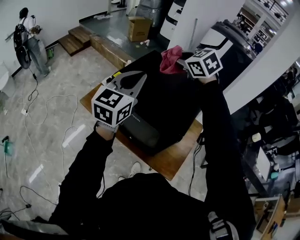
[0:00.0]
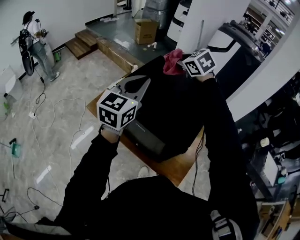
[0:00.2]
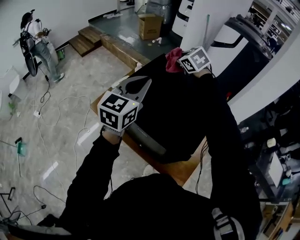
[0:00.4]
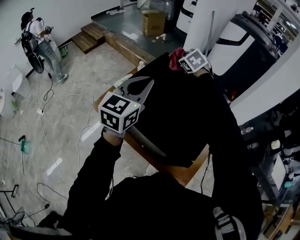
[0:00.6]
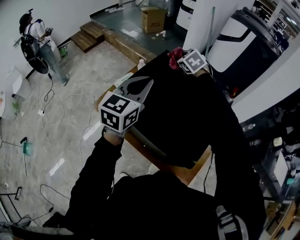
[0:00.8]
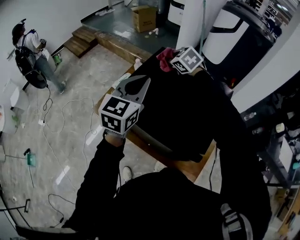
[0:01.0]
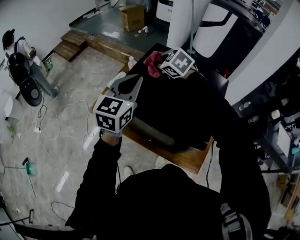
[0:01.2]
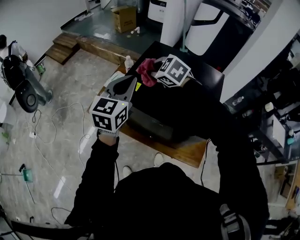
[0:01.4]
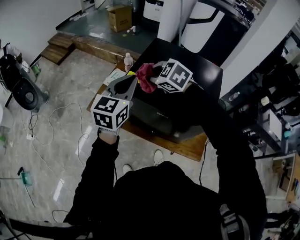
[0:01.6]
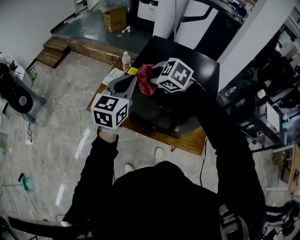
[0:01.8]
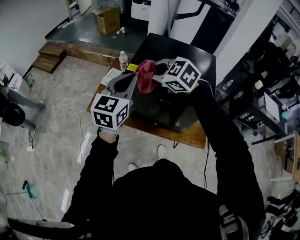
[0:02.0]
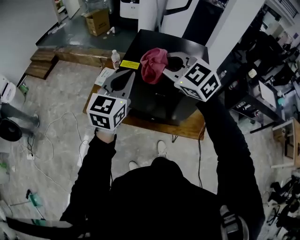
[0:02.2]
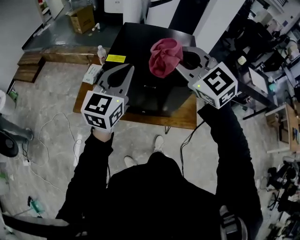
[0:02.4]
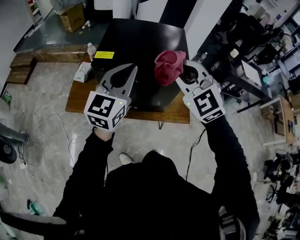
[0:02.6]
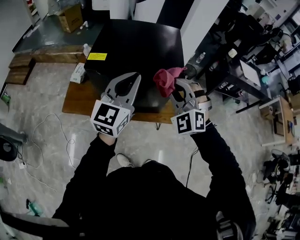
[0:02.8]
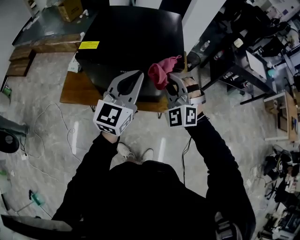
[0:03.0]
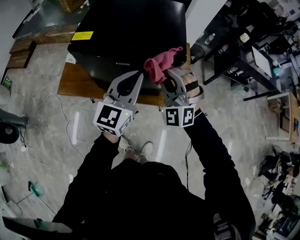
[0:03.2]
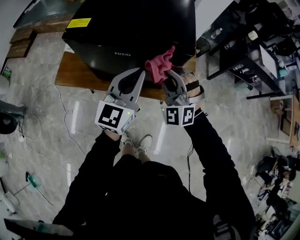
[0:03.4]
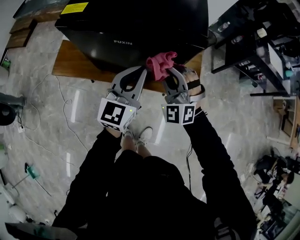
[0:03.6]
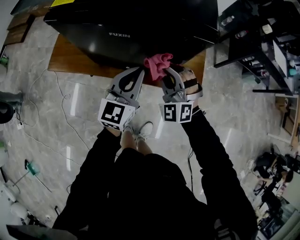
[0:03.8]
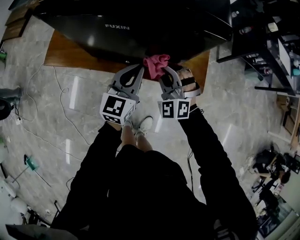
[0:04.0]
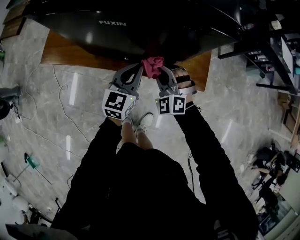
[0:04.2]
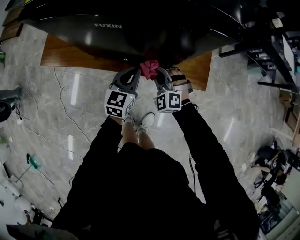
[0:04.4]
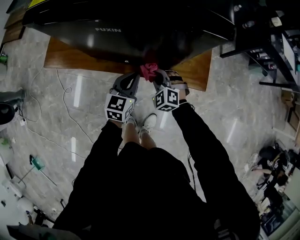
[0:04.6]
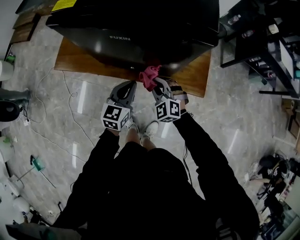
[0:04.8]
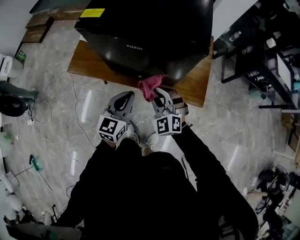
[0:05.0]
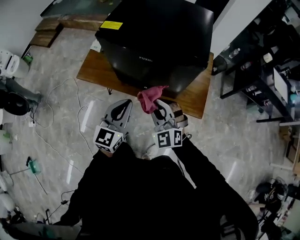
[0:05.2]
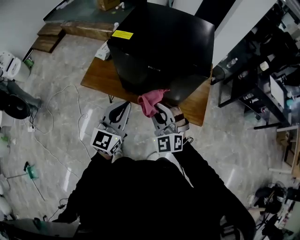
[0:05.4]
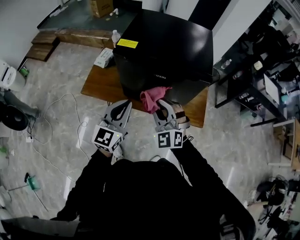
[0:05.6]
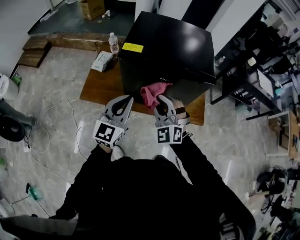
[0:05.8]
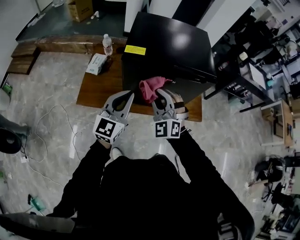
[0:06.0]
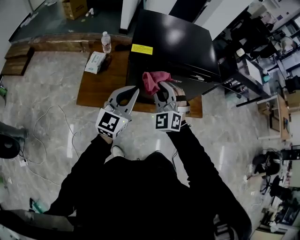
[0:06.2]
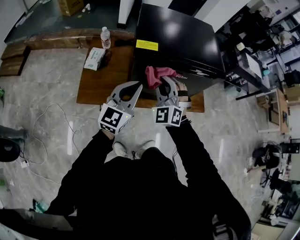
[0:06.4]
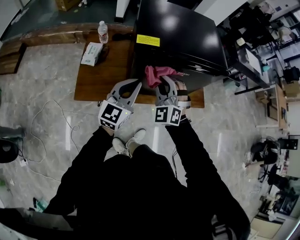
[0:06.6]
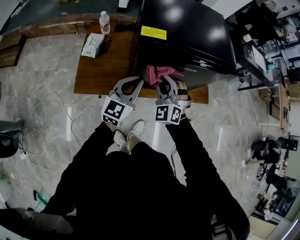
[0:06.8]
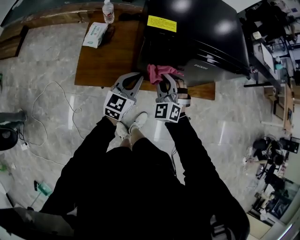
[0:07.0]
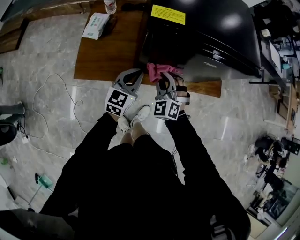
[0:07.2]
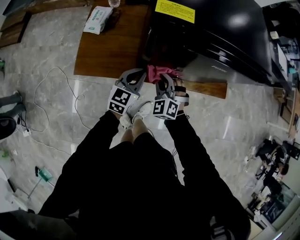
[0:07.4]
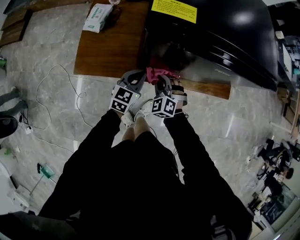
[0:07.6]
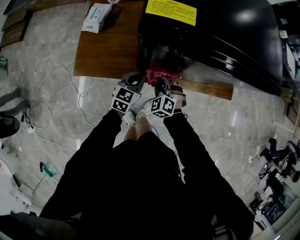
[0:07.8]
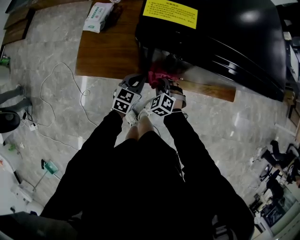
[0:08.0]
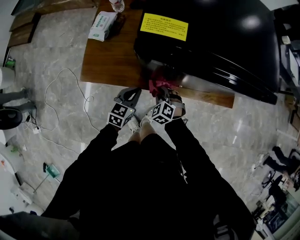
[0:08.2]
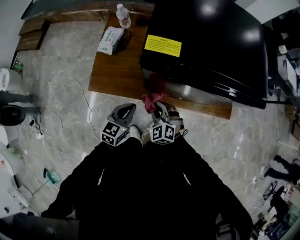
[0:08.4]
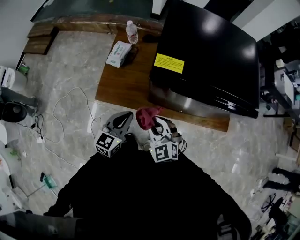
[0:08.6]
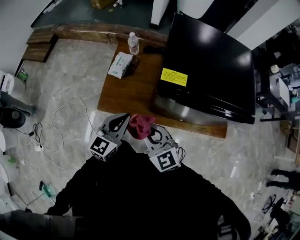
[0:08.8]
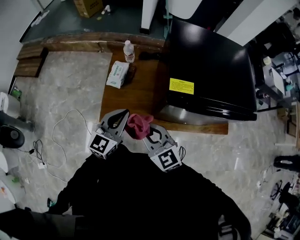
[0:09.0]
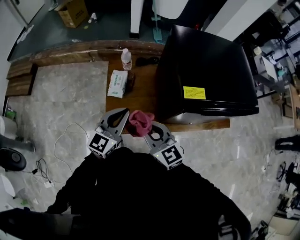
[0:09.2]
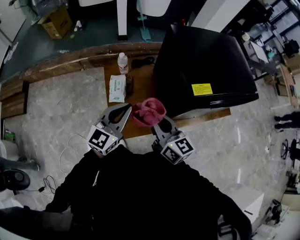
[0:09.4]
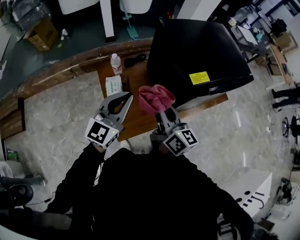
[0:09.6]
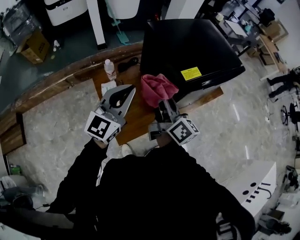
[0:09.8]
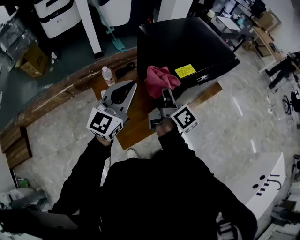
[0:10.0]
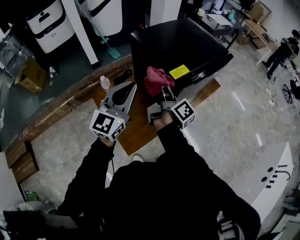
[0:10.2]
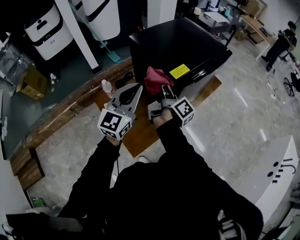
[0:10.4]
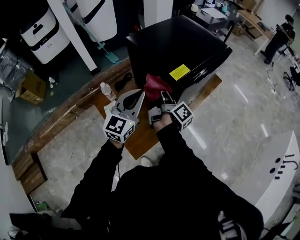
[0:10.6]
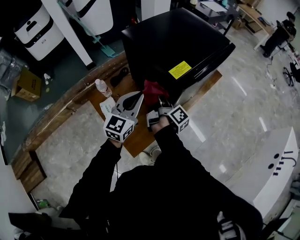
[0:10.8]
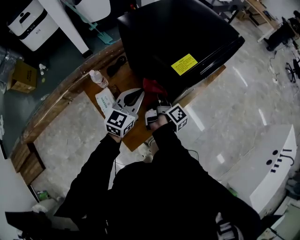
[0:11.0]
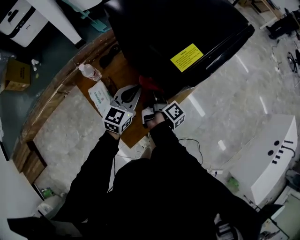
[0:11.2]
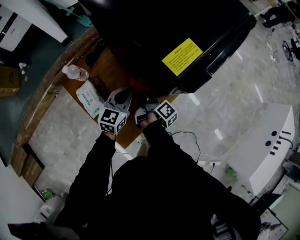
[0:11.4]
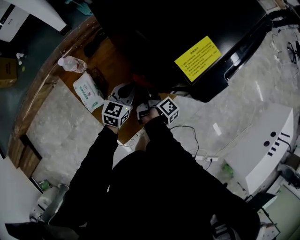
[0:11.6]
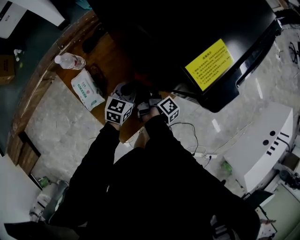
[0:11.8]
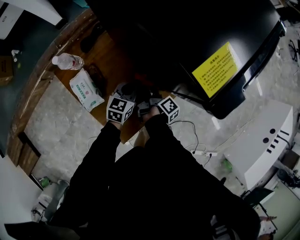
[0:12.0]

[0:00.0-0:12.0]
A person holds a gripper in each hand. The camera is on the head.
0:00.0 to 0:01.6: The right gripper moves to the left and downward, roughly 25 cm, and goes forward and returns, some 20 cm each way. The left gripper goes some 15 cm to the left, downward and forward.
0:01.6 to 0:03.0: The right gripper reaches approximately 15 cm upward, then returns, and angles its fingers upward, by roughly 30 degrees, while the left gripper shifts by roughly 25 cm, and changes its angle by approximately 30 degrees.
0:03.0 to 0:04.4: Both grippers move downward, some 40 cm. The right gripper turns by approximately 30 degrees. The left gripper turns by some 30 degrees.
0:04.4 to 0:06.0: The two grippers go about 40 cm upward and to the left. The left gripper turns by roughly 30 degrees. The right gripper rotates roughly 30 degrees.
0:06.0 to 0:07.6: The grippers both shift downward by roughly 35 cm. The left gripper swivels roughly 30 degrees; the right gripper turns by about 30 degrees.
0:07.6 to 0:09.0: The two grippers go about 30 cm upward and to the left. The right gripper swivels approximately 50 degrees.
0:09.0 to 0:10.4: The left gripper is displaced upward by some 15 cm, and turns by approximately 40 degrees; the right gripper changes place by about 15 cm, and swivels roughly 120 degrees.
0:10.4 to 0:12.0: Both grippers move downward, some 40 cm. The right gripper tilts its fingers some 30 degrees downward. The left gripper angles its fingers downward, by some 30 degrees.

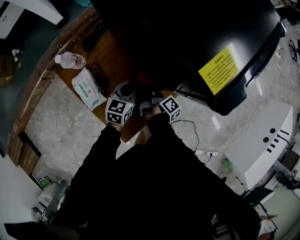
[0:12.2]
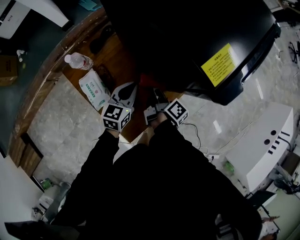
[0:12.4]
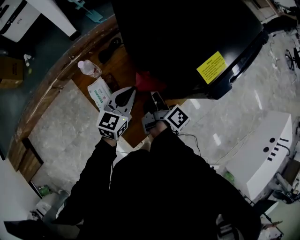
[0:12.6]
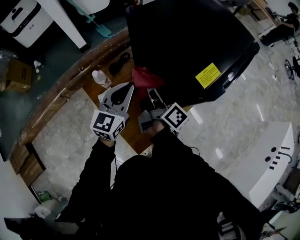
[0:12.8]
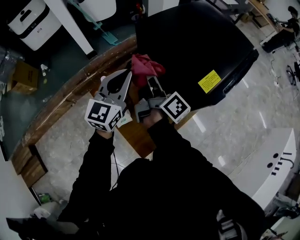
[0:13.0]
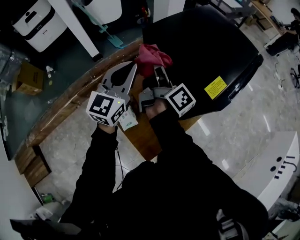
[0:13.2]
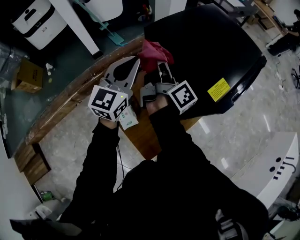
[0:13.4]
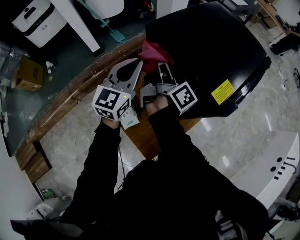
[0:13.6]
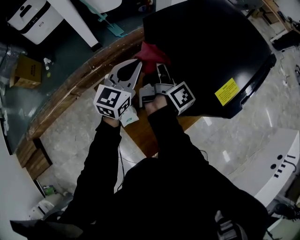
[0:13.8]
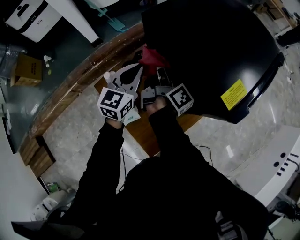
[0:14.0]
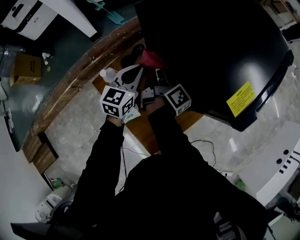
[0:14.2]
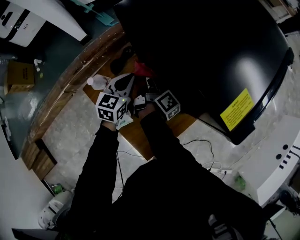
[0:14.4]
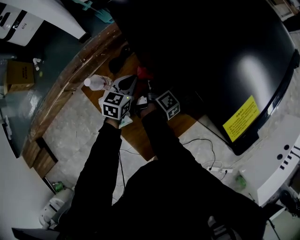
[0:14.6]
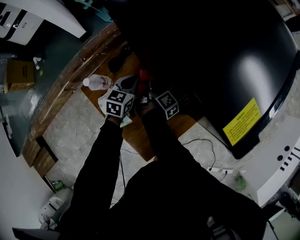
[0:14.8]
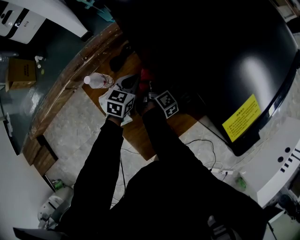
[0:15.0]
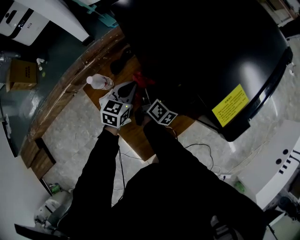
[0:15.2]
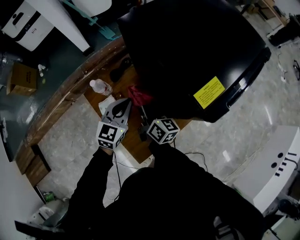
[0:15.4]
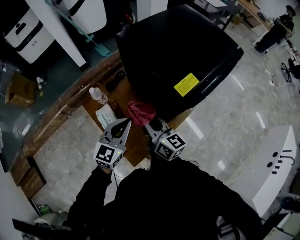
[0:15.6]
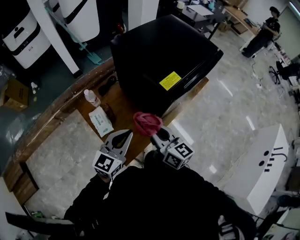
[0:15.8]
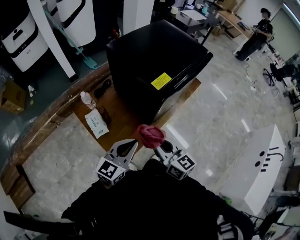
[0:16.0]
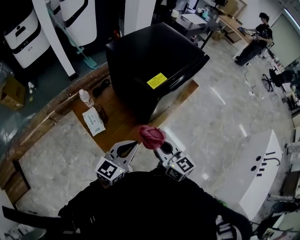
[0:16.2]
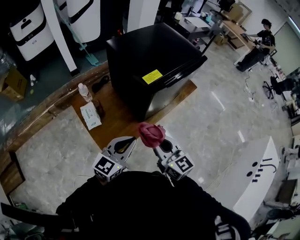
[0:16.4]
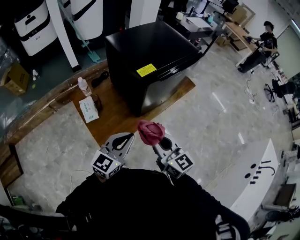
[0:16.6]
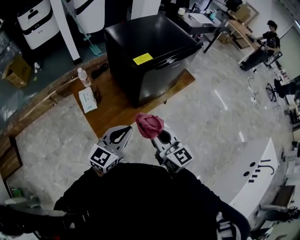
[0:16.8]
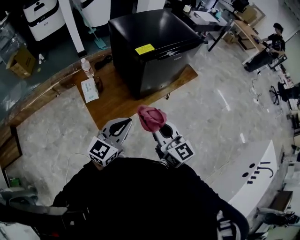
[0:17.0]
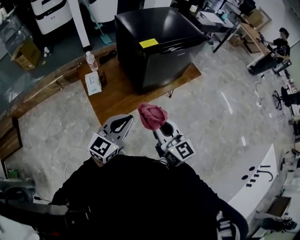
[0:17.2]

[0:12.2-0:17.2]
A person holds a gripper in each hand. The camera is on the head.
0:12.2 to 0:13.8: The grippers both shift upward and to the left by some 40 cm. The right gripper angles its fingers upward, by approximately 30 degrees; the left gripper changes its angle by some 30 degrees.
0:13.8 to 0:15.6: The right gripper moves backward, roughly 20 cm, moves about 35 cm downward and comes back, and rolls counterclockwise, seen from behind, by roughly 50 degrees. The left gripper heads backward and to the right, covering approximately 20 cm, and reaches roughly 30 cm downward, then returns.
0:15.6 to 0:17.2: Both grippers move backward and to the right, about 35 cm. The right gripper swivels approximately 20 degrees.

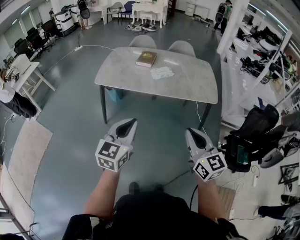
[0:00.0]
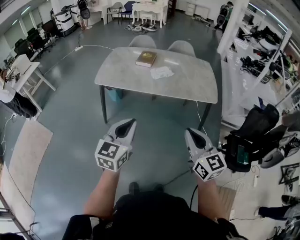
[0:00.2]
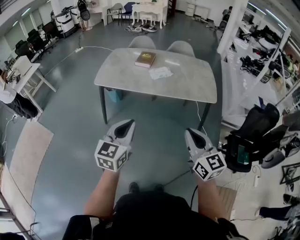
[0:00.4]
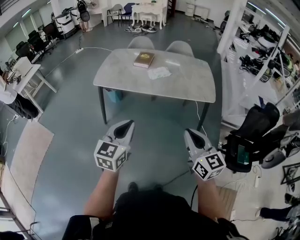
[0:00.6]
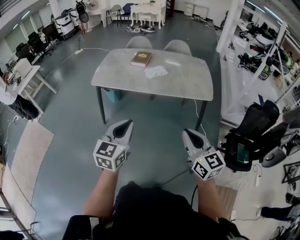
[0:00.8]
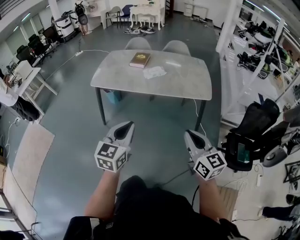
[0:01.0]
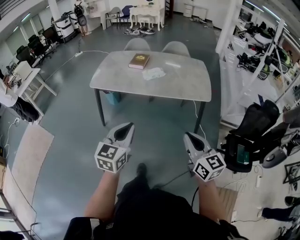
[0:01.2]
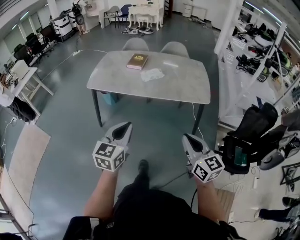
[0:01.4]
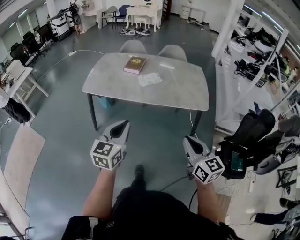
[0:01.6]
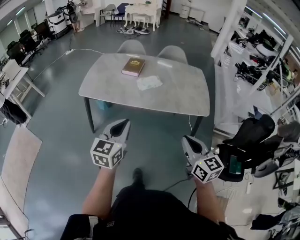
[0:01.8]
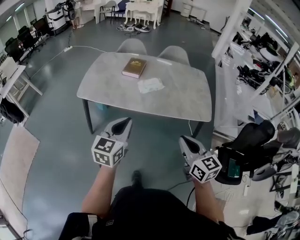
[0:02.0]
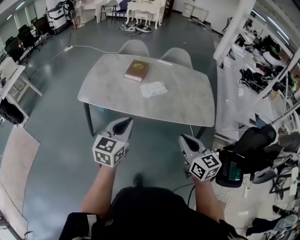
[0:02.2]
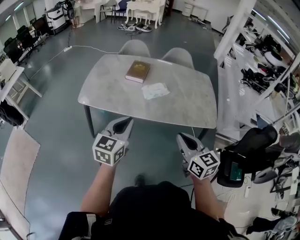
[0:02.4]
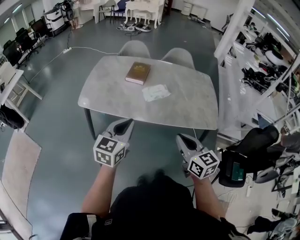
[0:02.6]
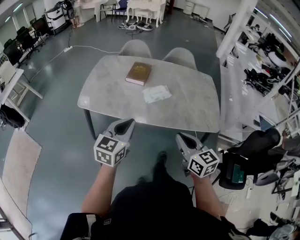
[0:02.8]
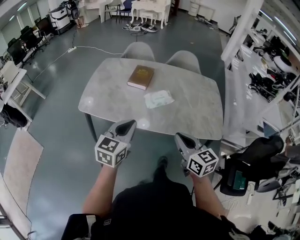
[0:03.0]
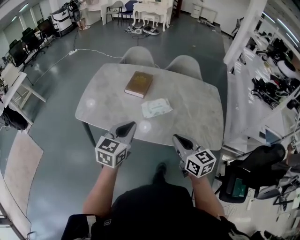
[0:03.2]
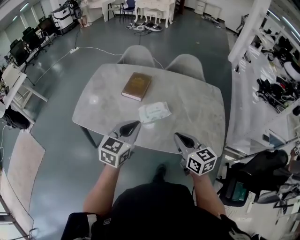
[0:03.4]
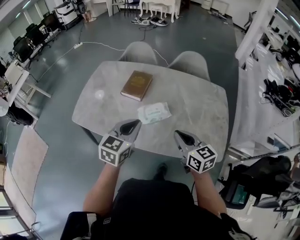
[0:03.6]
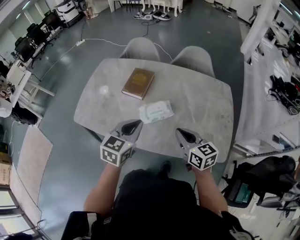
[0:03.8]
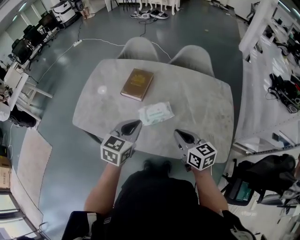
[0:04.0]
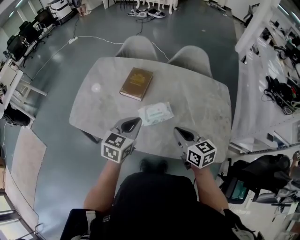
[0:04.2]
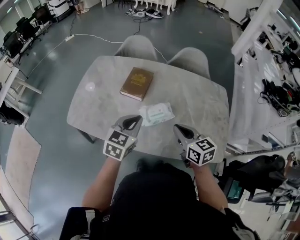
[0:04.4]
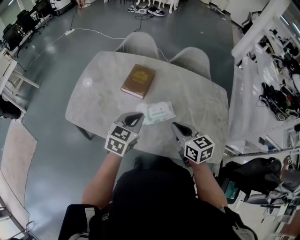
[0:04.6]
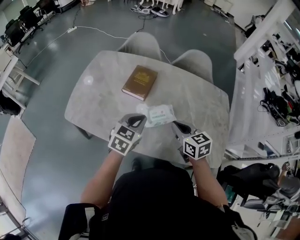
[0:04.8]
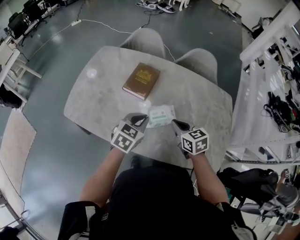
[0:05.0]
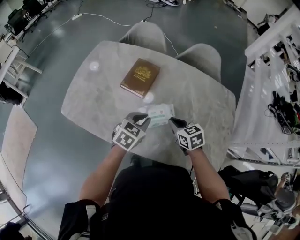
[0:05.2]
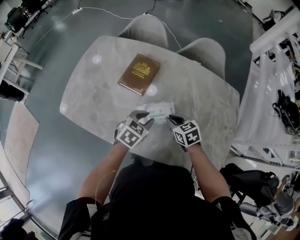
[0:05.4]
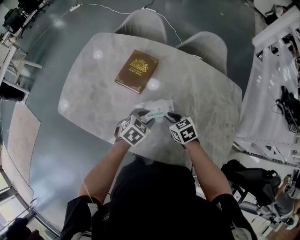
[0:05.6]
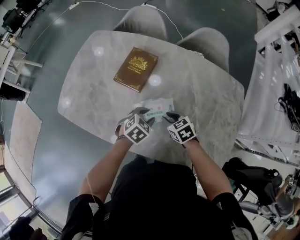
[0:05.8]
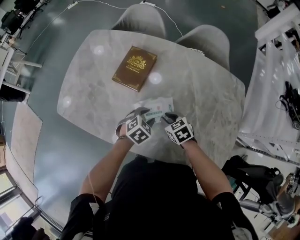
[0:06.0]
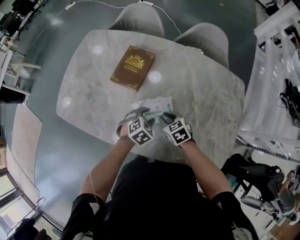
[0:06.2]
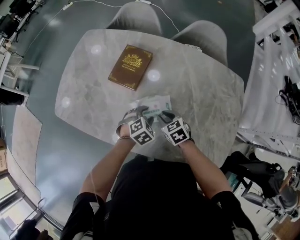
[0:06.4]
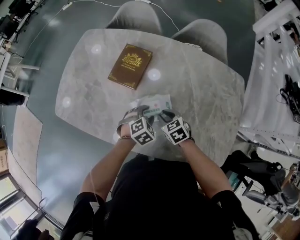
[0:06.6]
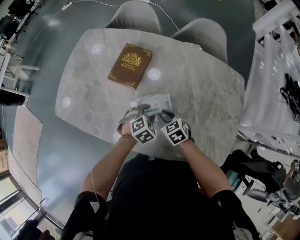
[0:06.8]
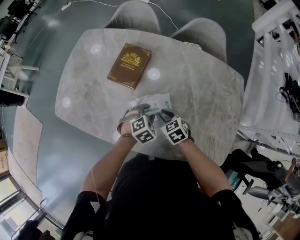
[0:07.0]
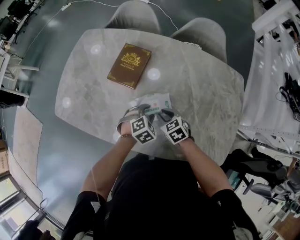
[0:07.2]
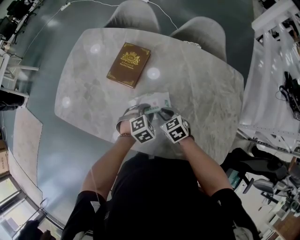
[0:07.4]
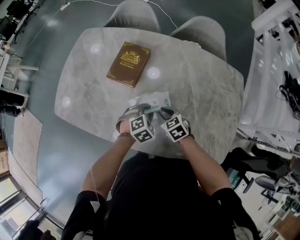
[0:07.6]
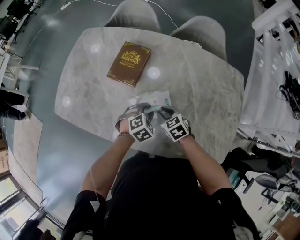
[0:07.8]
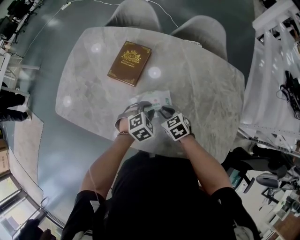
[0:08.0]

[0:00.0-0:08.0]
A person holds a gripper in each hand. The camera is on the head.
0:00.0 to 0:01.6: The right gripper travels to the right by some 10 cm; the left gripper shifts some 10 cm to the right and forward.
0:01.6 to 0:03.2: Both grippers travel together forward, some 40 cm.
0:03.2 to 0:04.8: The left gripper moves forward and downward, about 25 cm, while the right gripper moves forward, some 25 cm.
0:04.8 to 0:06.4: The left gripper heads downward and to the right, covering roughly 25 cm, tips its fingers downward by roughly 30 degrees, and opens. Meanwhile the right gripper shifts about 20 cm downward and forward, changes its angle by some 20 degrees, and opens its fingers.
0:06.4 to 0:08.0: The left gripper closes.
